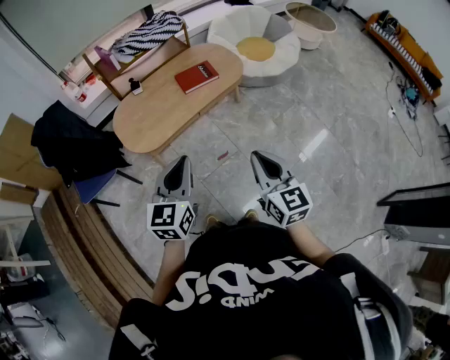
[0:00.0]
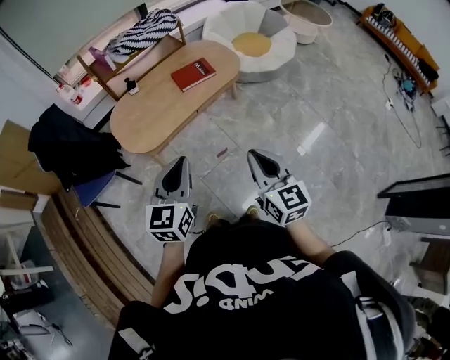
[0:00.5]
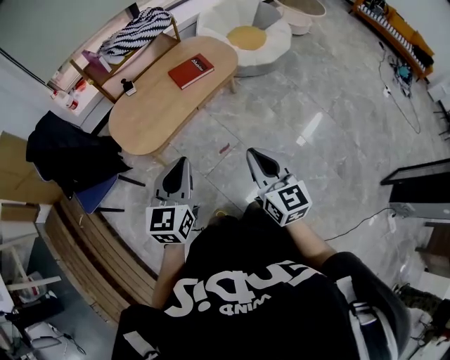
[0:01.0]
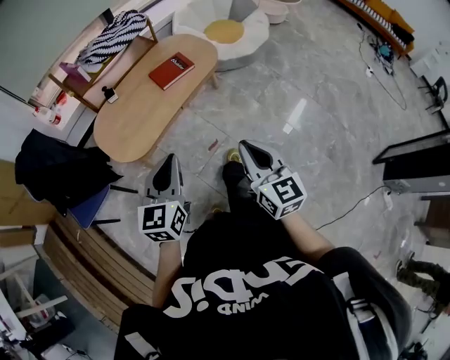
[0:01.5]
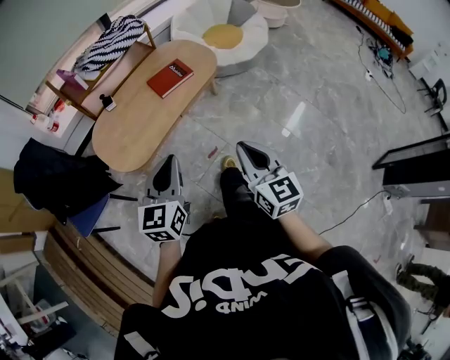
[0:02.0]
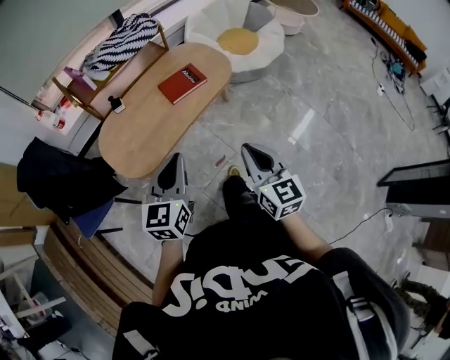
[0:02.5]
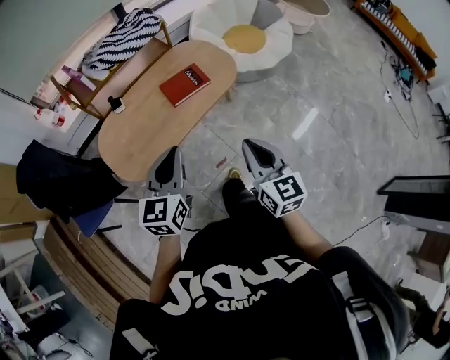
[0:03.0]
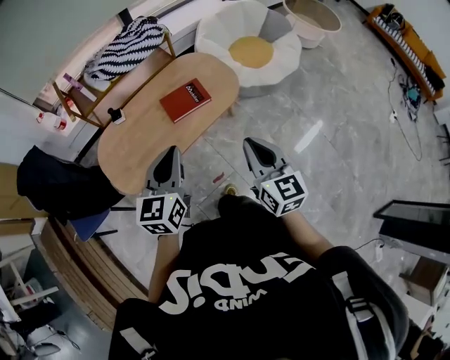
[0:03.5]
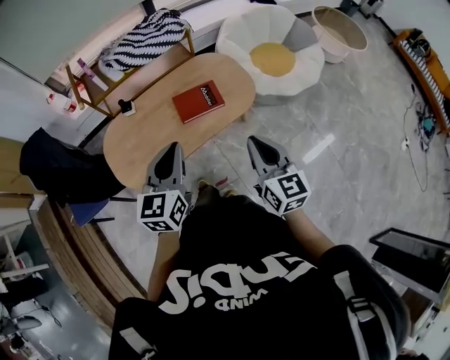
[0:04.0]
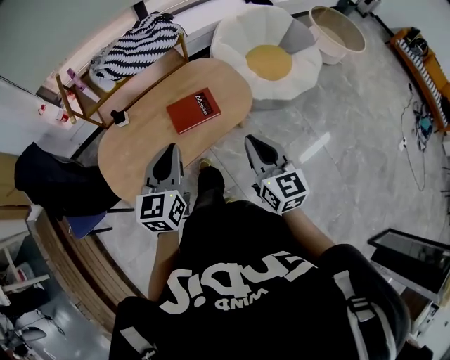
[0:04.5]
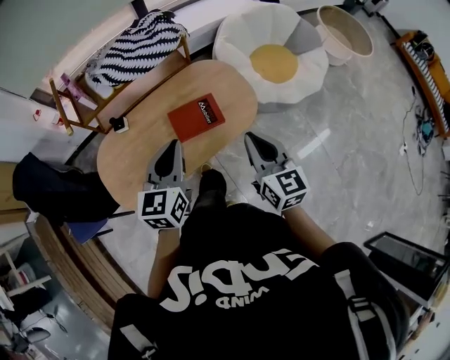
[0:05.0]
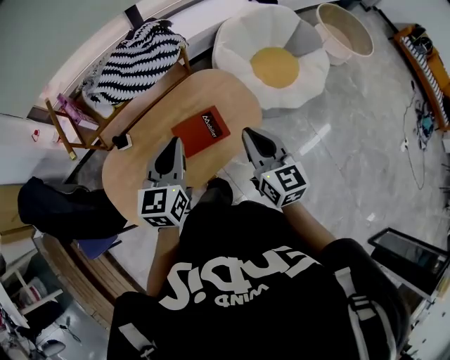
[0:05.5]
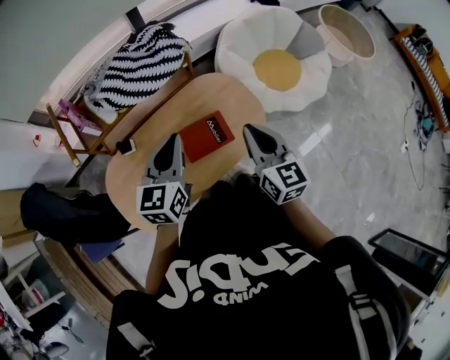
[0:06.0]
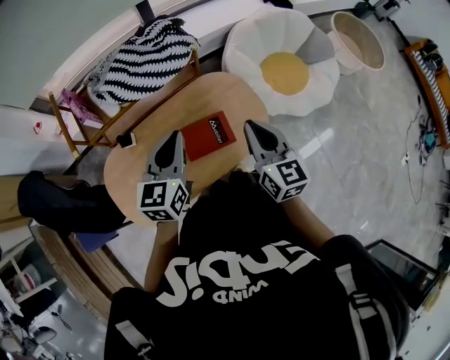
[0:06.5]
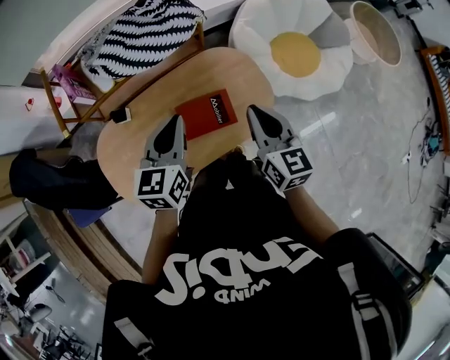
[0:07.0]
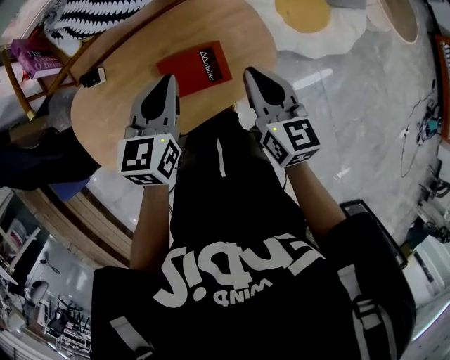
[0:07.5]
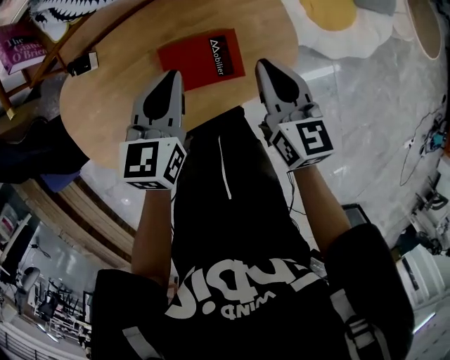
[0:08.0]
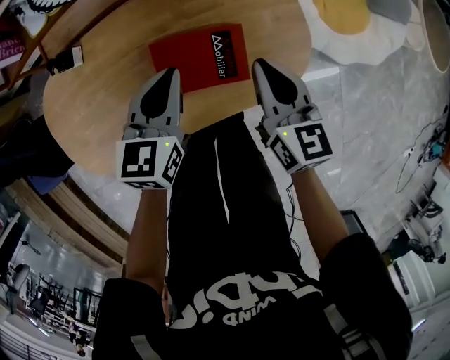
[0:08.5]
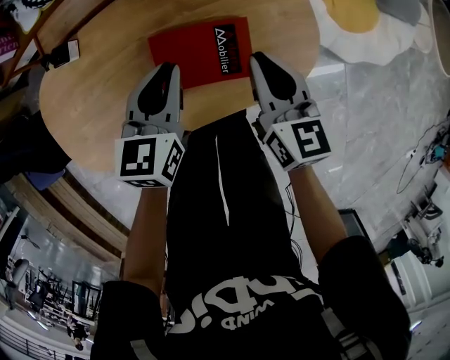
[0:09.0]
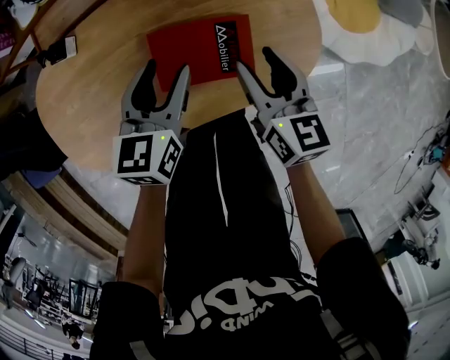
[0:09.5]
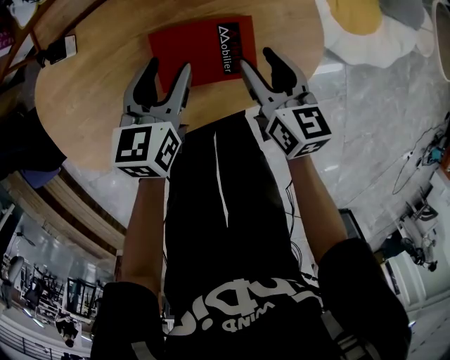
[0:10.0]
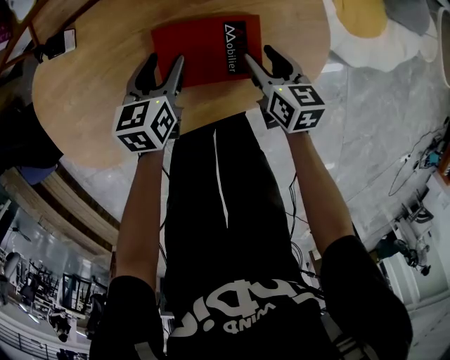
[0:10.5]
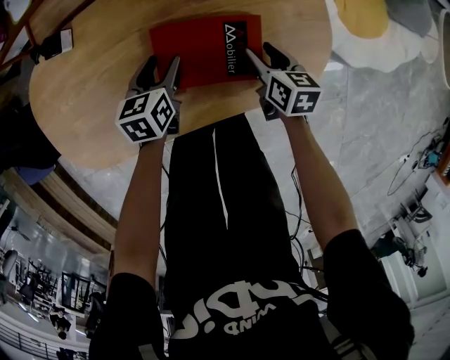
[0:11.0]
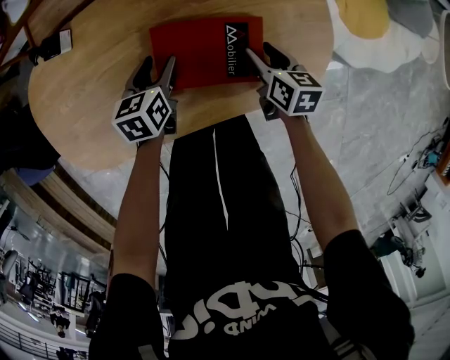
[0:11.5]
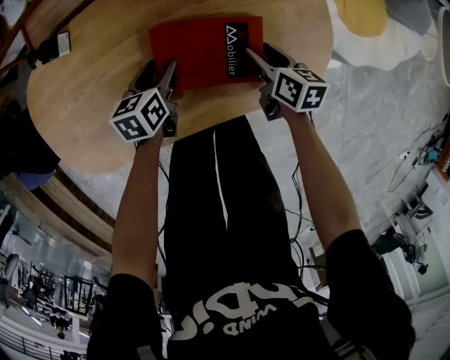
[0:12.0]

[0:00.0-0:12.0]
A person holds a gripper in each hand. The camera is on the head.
0:00.0 to 0:02.0: The left gripper travels forward by approximately 5 cm. Meanwhile the right gripper moves forward and to the left, roughly 10 cm.
0:02.0 to 0:04.0: The two grippers go approximately 30 cm forward.
0:04.0 to 0:06.0: The grippers both shift forward by some 30 cm.
0:06.0 to 0:08.0: The left gripper moves downward, some 20 cm. Meanwhile the right gripper travels downward and forward by about 25 cm.
0:08.0 to 0:10.0: The grippers both shift downward by approximately 15 cm. The right gripper opens. The left gripper opens up.
0:10.0 to 0:12.0: Both grippers move downward, some 15 cm. The right gripper swivels roughly 20 degrees. The left gripper turns by approximately 20 degrees.

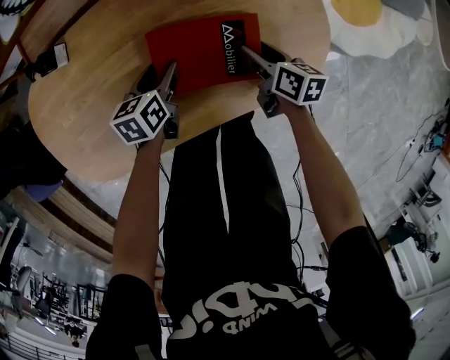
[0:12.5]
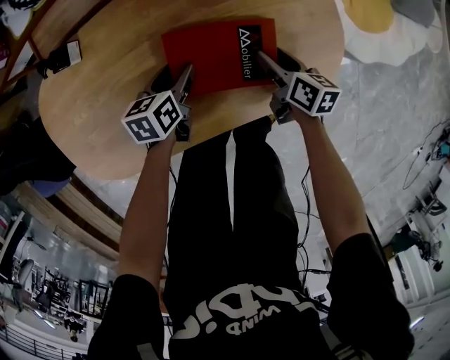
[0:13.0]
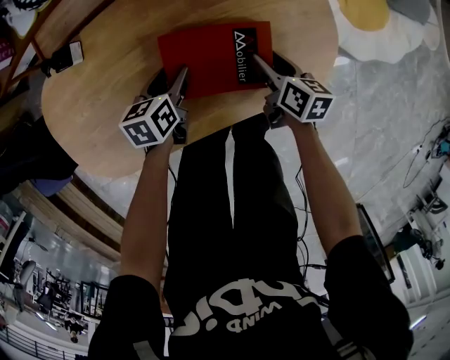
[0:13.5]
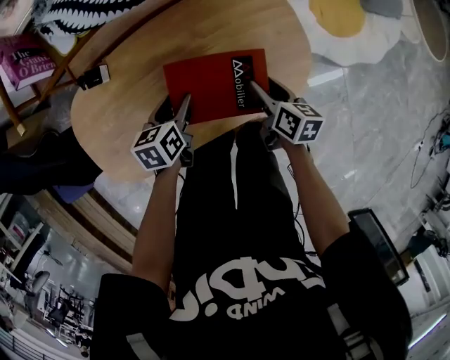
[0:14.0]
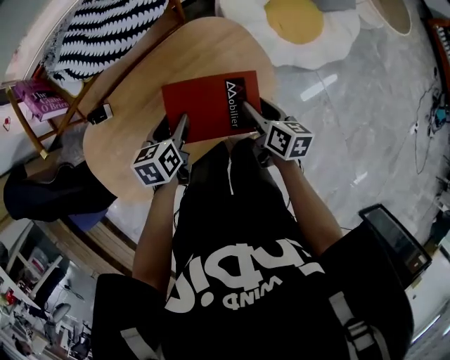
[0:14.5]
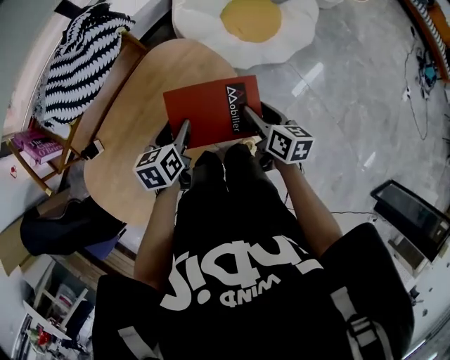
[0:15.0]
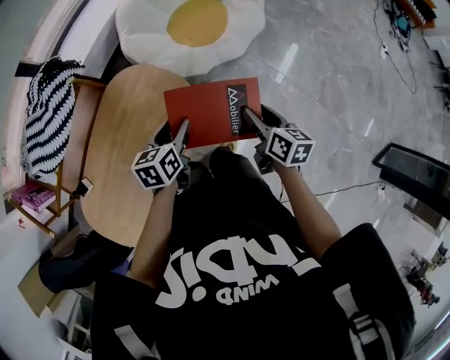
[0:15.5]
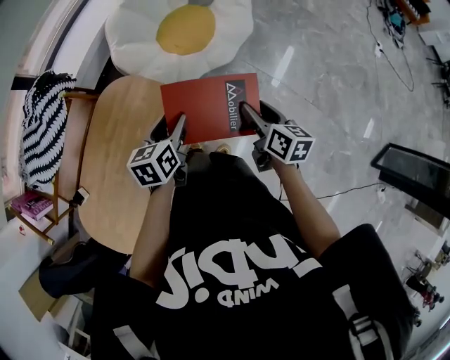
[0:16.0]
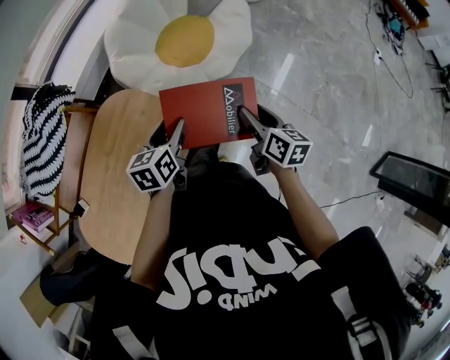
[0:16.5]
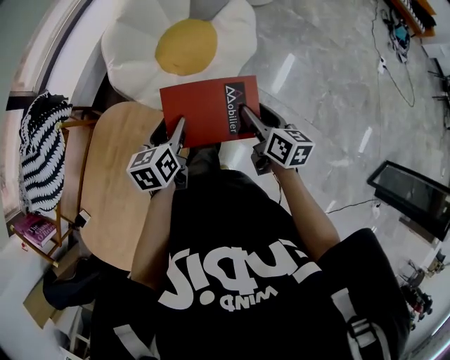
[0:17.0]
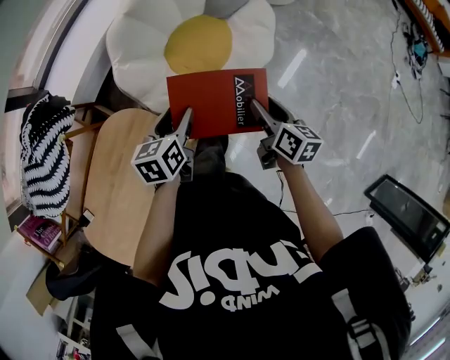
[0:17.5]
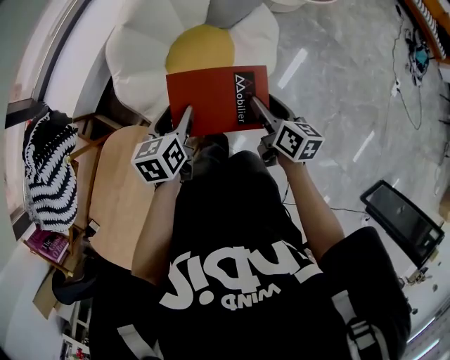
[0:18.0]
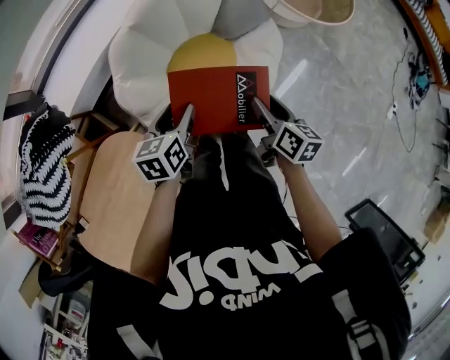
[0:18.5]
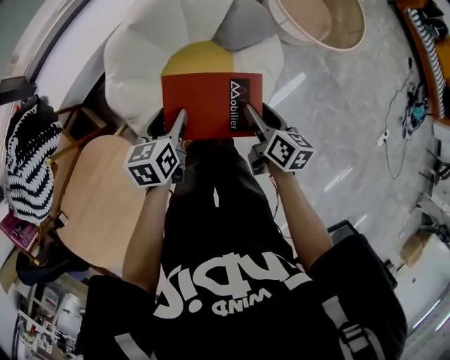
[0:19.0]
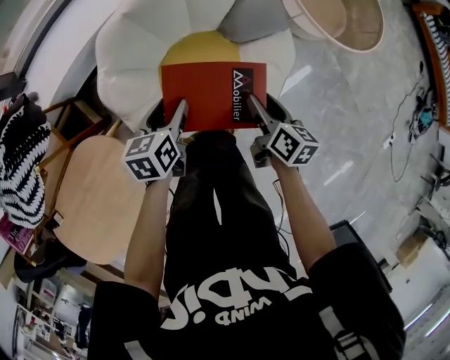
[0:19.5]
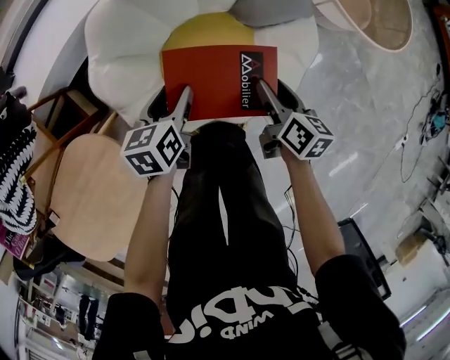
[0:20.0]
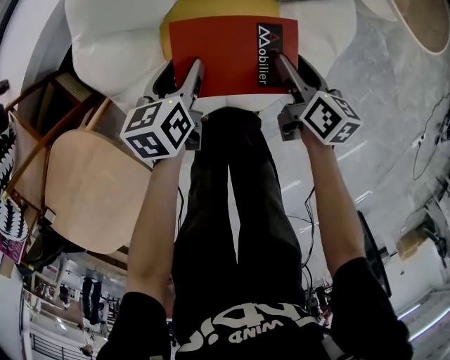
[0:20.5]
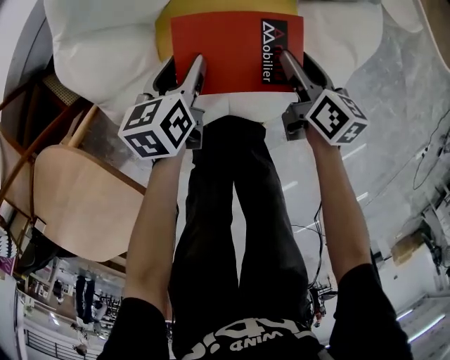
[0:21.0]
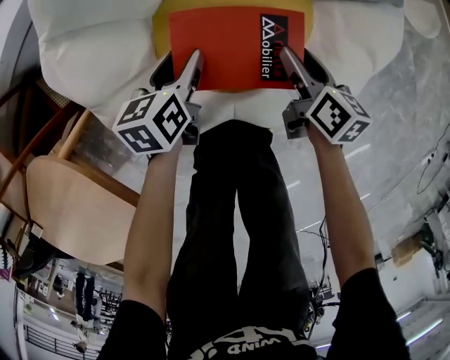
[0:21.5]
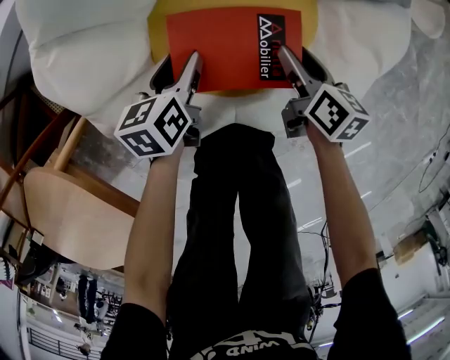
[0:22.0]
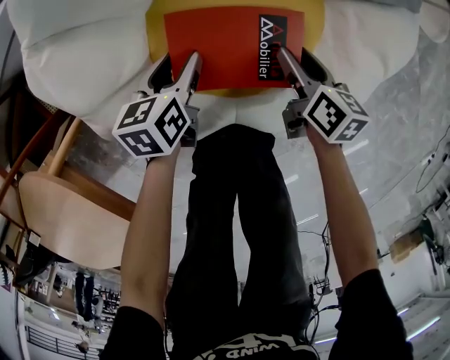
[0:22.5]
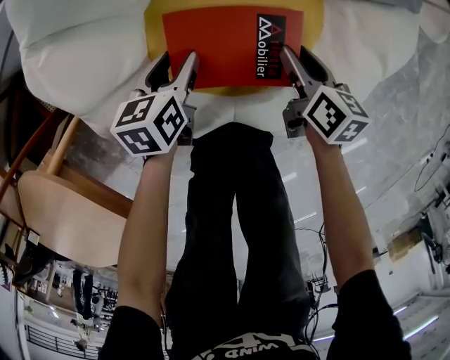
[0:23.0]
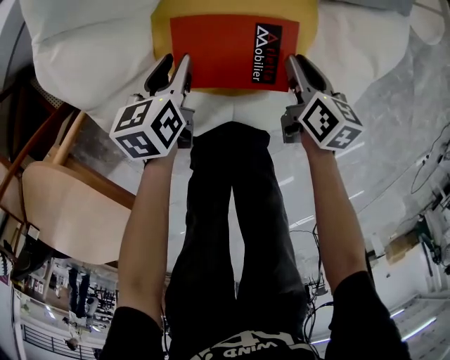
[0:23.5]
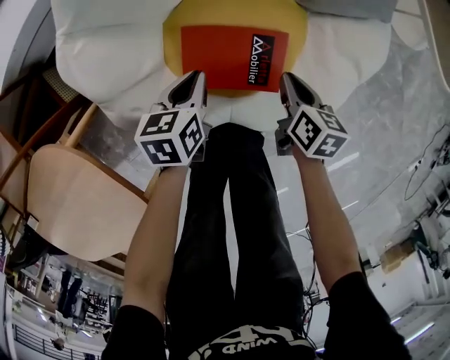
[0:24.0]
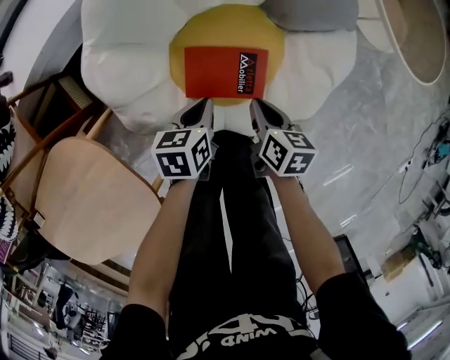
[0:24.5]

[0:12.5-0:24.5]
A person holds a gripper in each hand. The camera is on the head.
0:12.5 to 0:14.5: Both grippers move upward, about 25 cm. The right gripper changes its angle by approximately 20 degrees.
0:14.5 to 0:16.5: The left gripper shifts by approximately 40 cm, and rotates approximately 30 degrees; the right gripper ends up roughly 40 cm from where it was, and turns by some 30 degrees.
0:16.5 to 0:18.5: Both grippers travel together forward, about 40 cm.
0:18.5 to 0:20.5: The left gripper shifts some 30 cm downward; the right gripper travels downward and forward by roughly 35 cm.
0:20.5 to 0:22.5: The two grippers go some 20 cm downward.
0:22.5 to 0:24.5: The grippers both shift upward by about 15 cm. The right gripper closes. Meanwhile the left gripper closes.

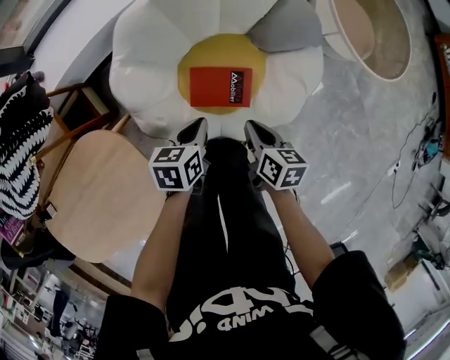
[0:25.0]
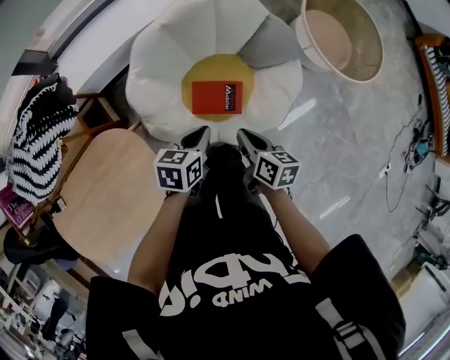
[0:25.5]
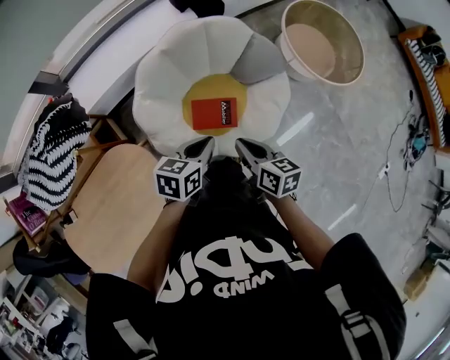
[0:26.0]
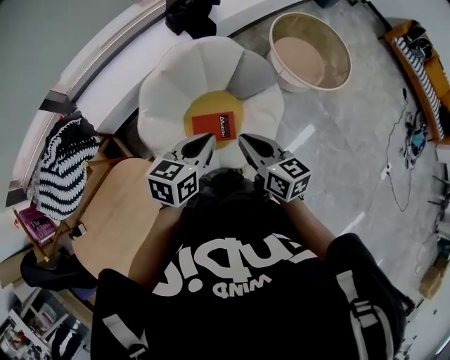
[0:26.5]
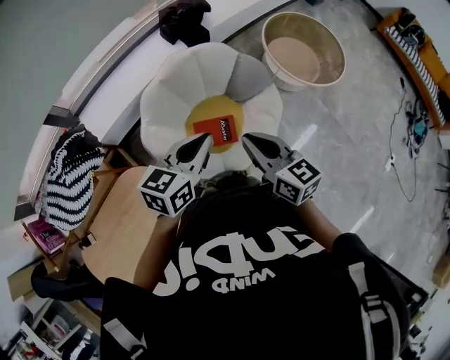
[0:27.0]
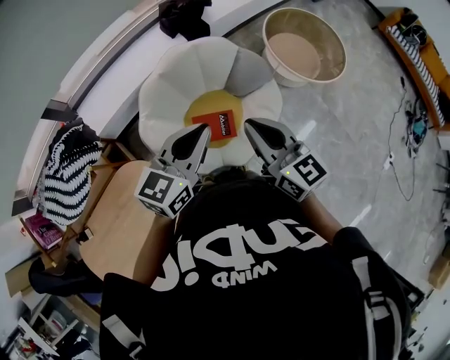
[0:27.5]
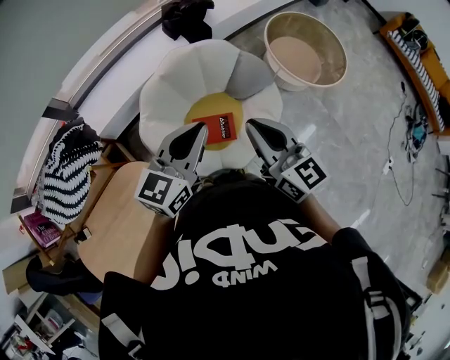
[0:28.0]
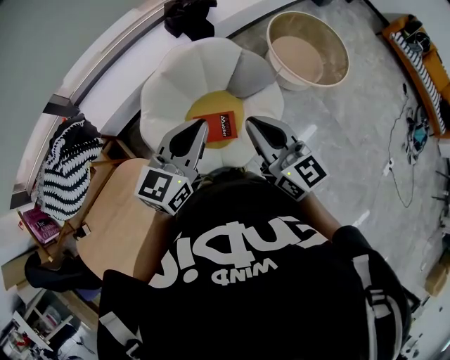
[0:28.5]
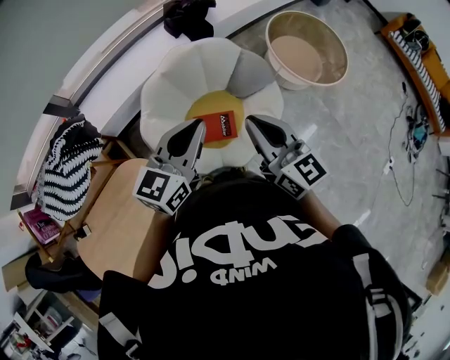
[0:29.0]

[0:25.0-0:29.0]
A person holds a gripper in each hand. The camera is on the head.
0:25.0 to 0:27.0: Both grippers travel together upward, about 40 cm. The left gripper rotates approximately 40 degrees, while the right gripper tilts its fingers some 30 degrees upward.
0:27.0 to 0:29.0: The right gripper heads upward, covering approximately 5 cm.
